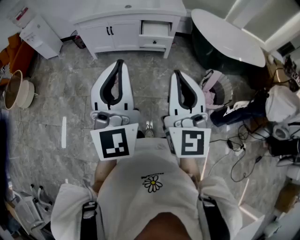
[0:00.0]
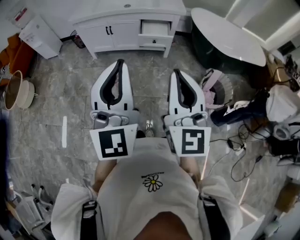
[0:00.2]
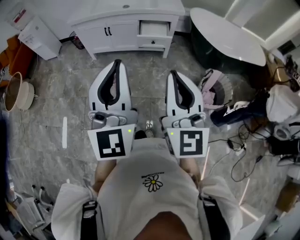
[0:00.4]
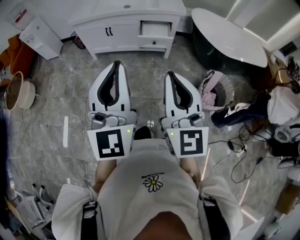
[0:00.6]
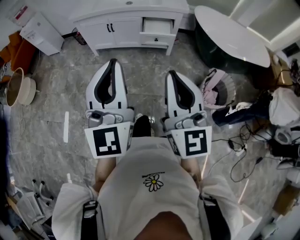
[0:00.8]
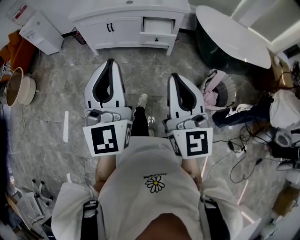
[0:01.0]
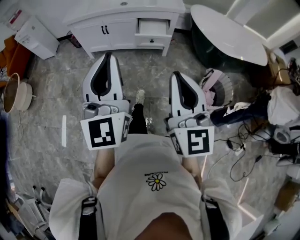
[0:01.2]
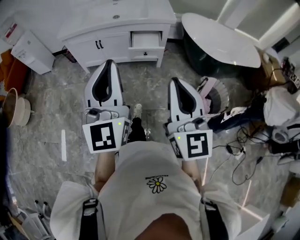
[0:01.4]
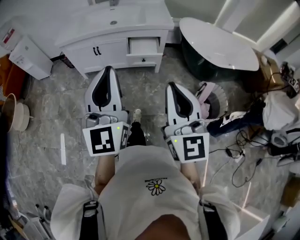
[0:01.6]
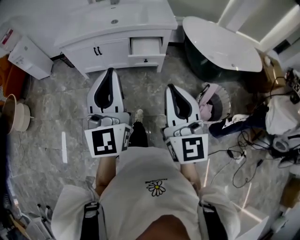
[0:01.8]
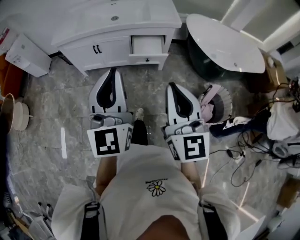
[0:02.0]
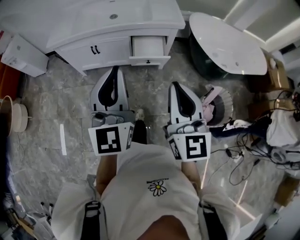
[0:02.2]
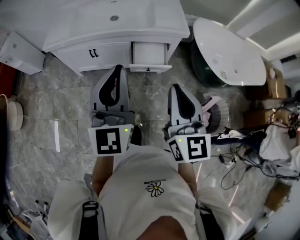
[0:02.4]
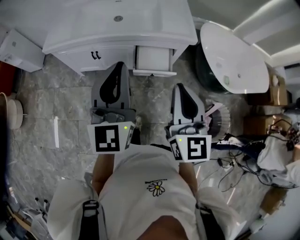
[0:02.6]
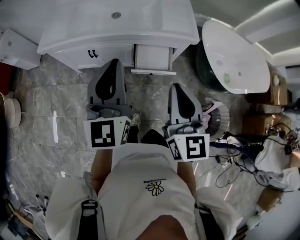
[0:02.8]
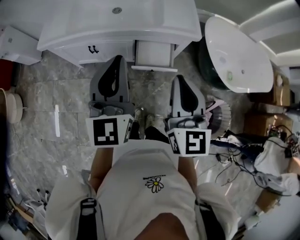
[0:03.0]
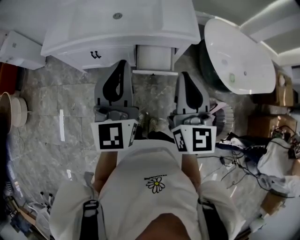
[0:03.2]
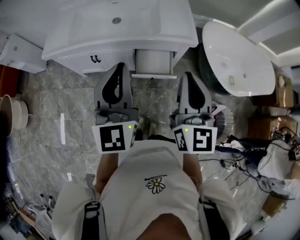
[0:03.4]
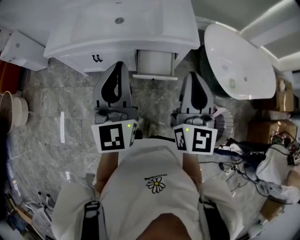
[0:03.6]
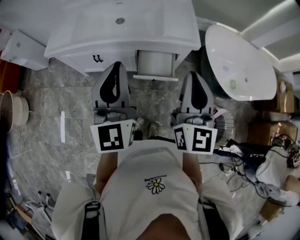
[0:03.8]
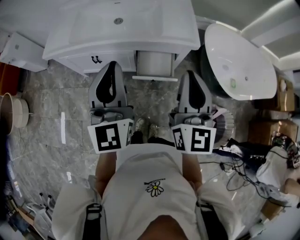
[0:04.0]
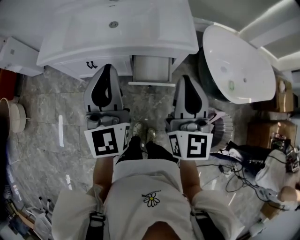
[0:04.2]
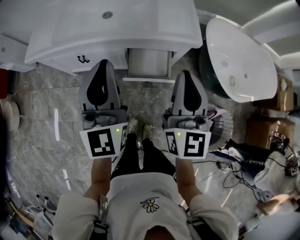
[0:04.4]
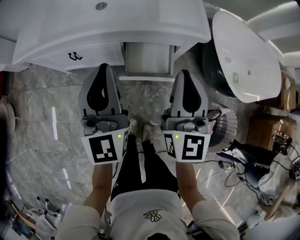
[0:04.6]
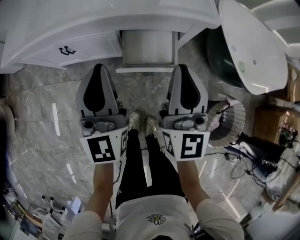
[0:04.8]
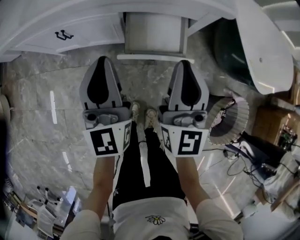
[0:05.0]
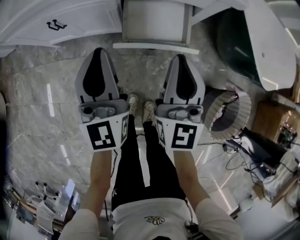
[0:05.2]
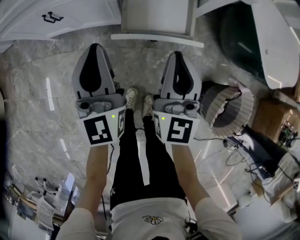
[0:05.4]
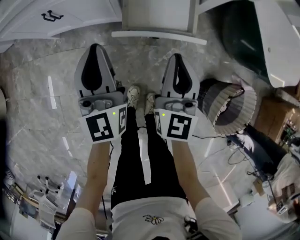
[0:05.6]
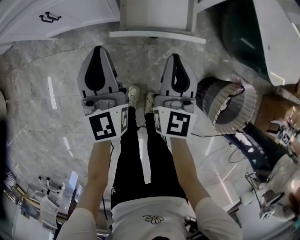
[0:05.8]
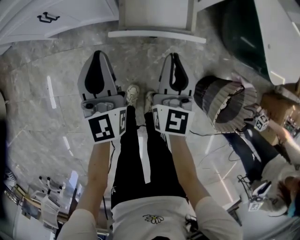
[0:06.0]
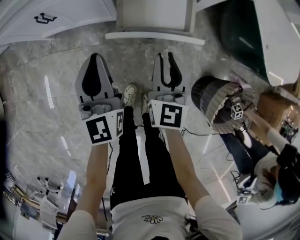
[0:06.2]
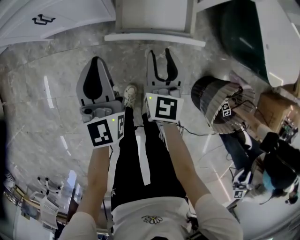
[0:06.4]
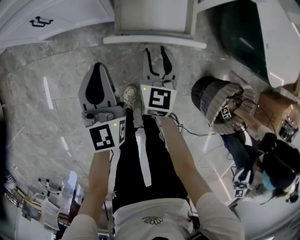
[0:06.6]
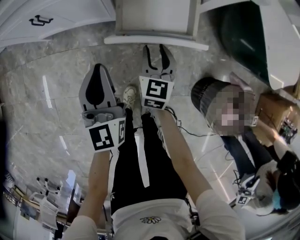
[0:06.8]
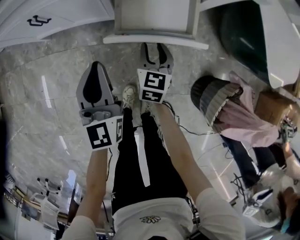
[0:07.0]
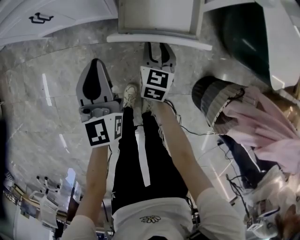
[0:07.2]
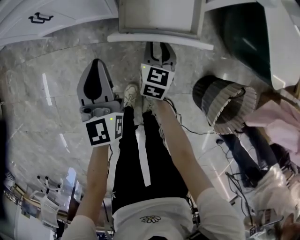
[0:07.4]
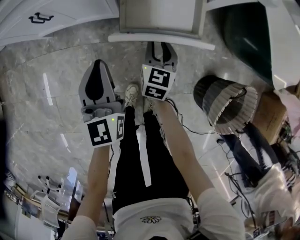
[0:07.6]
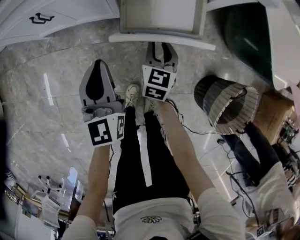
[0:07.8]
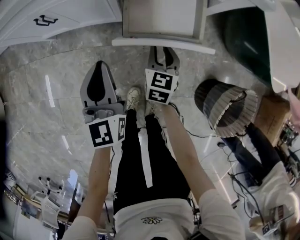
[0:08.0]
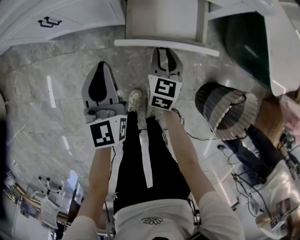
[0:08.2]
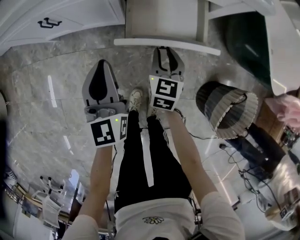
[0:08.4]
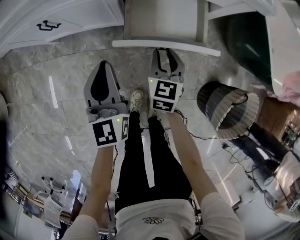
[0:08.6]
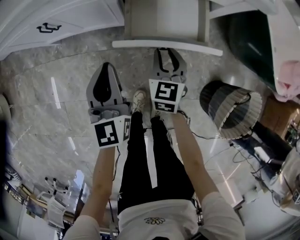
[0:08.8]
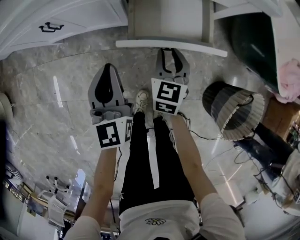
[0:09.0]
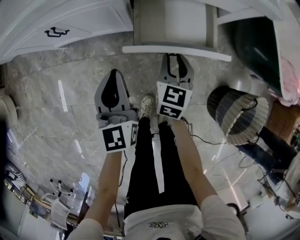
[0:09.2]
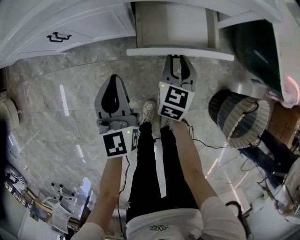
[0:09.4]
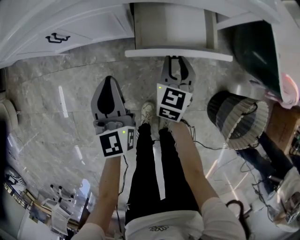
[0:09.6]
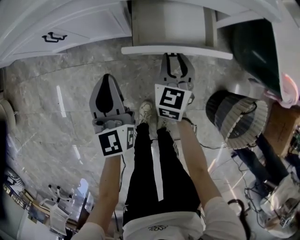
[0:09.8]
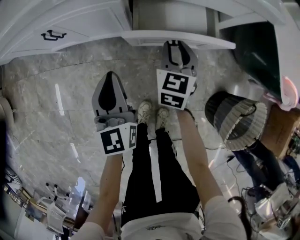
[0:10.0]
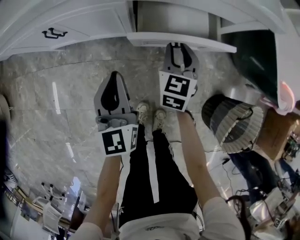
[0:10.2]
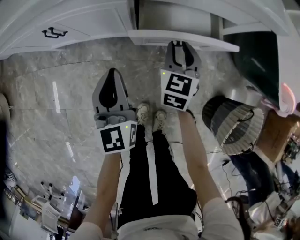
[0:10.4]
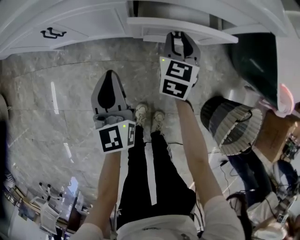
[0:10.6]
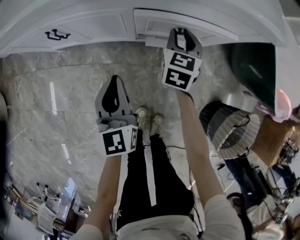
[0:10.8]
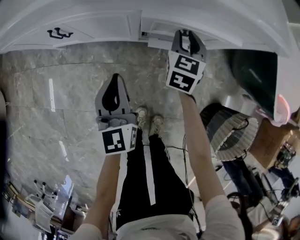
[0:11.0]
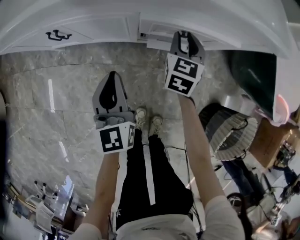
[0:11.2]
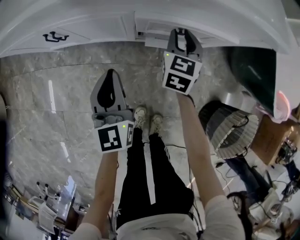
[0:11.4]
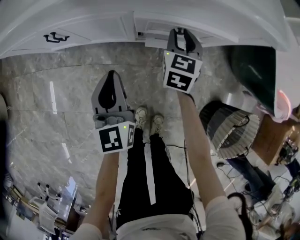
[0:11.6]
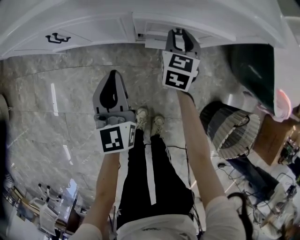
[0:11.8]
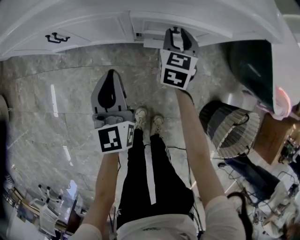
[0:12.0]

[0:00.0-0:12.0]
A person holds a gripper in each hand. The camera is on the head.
0:00.0 to 0:01.6: The grippers both shift forward by approximately 10 cm.
0:01.6 to 0:03.0: The two grippers go roughly 35 cm forward.
0:03.0 to 0:04.4: The two grippers go approximately 10 cm forward.
0:04.4 to 0:06.0: Both grippers travel together downward, some 35 cm.
0:06.0 to 0:07.6: The right gripper moves downward, some 15 cm, swivels some 20 degrees, and opens its fingers, while the left gripper shifts approximately 5 cm downward.
0:07.6 to 0:09.0: The grippers stay close to where they were, moving slightly.
0:09.0 to 0:10.4: The right gripper shifts about 5 cm forward.
0:10.4 to 0:12.0: The right gripper goes some 5 cm forward.

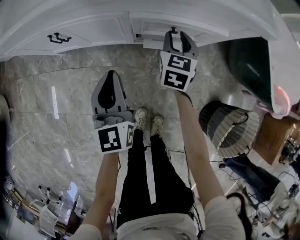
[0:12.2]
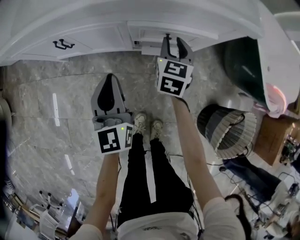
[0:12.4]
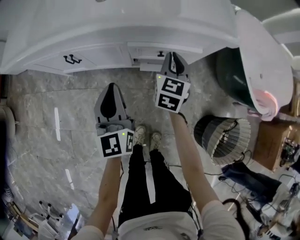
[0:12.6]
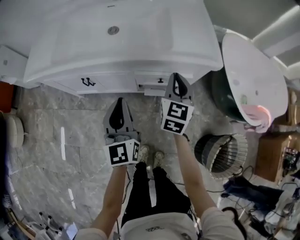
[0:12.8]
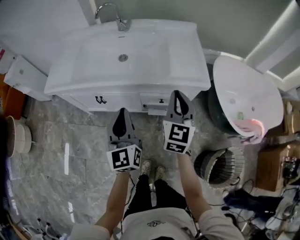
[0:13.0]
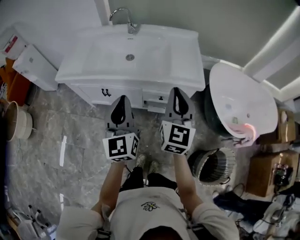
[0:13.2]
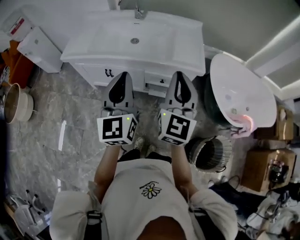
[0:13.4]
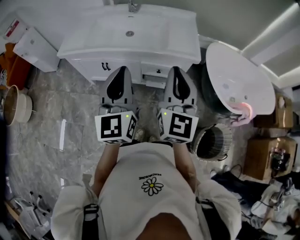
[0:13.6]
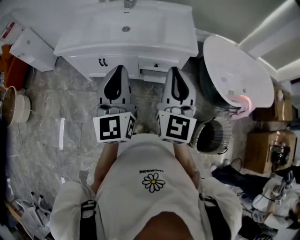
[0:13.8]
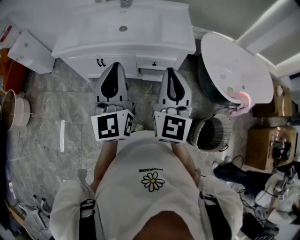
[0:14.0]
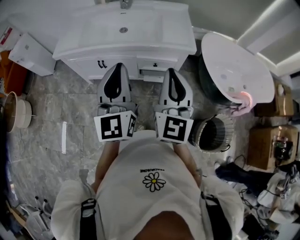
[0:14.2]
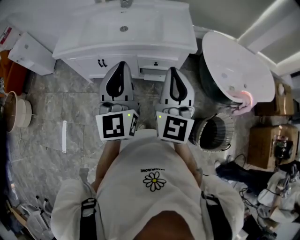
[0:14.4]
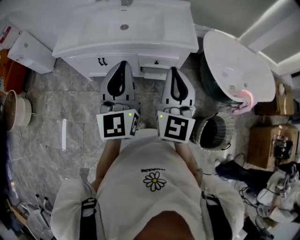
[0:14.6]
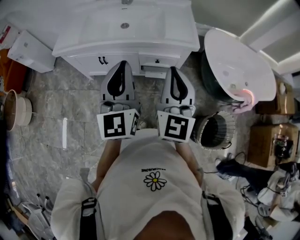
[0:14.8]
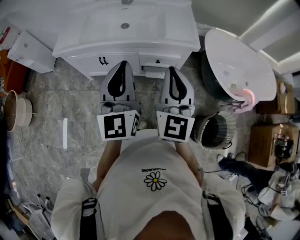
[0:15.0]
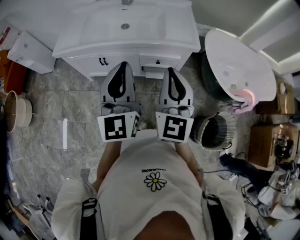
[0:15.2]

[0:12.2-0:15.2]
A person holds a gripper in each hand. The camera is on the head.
0:12.2 to 0:13.8: The right gripper shifts some 60 cm upward and backward, points its fingers approximately 40 degrees further upward, and closes its fingers; the left gripper moves upward, about 50 cm.
0:13.8 to 0:15.2: The grippers stay close to where they were, moving slightly.

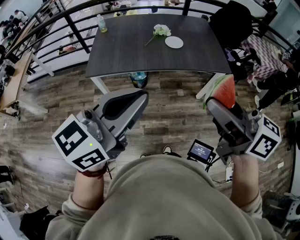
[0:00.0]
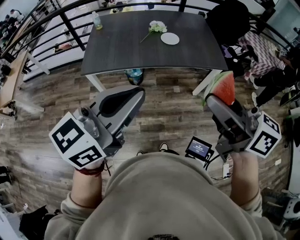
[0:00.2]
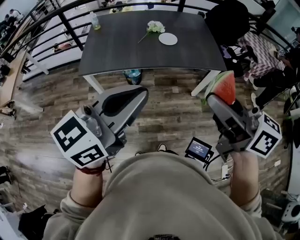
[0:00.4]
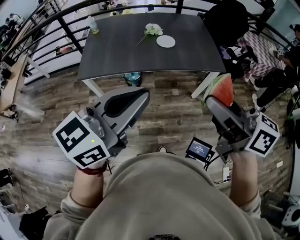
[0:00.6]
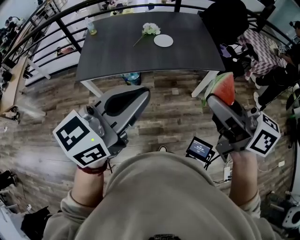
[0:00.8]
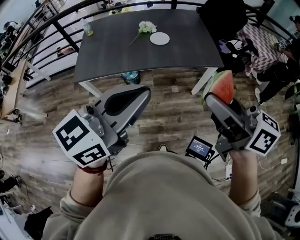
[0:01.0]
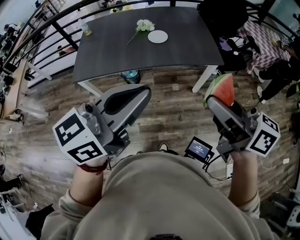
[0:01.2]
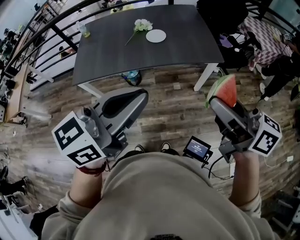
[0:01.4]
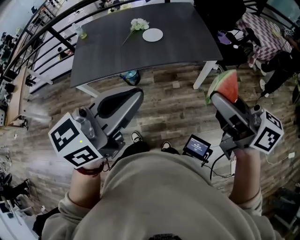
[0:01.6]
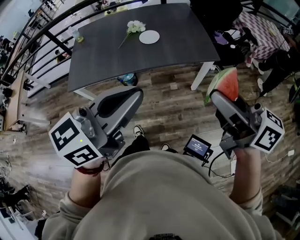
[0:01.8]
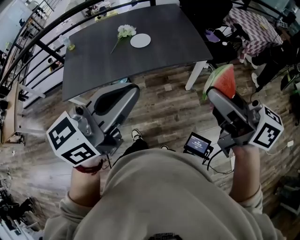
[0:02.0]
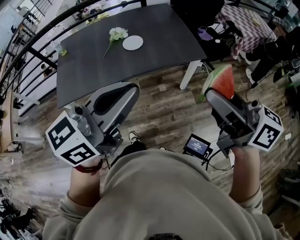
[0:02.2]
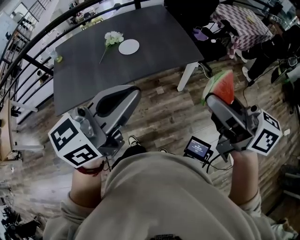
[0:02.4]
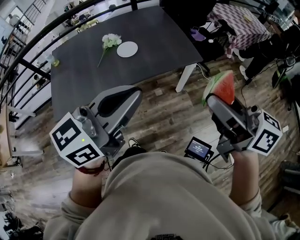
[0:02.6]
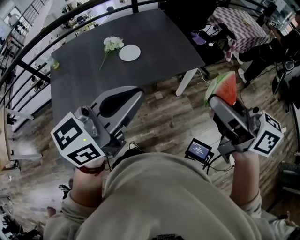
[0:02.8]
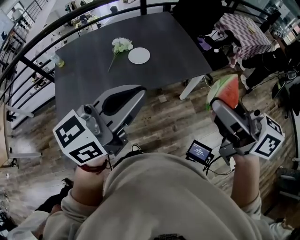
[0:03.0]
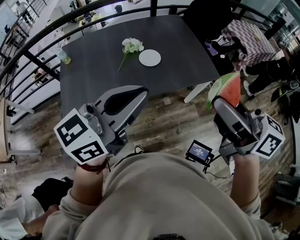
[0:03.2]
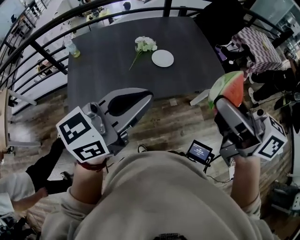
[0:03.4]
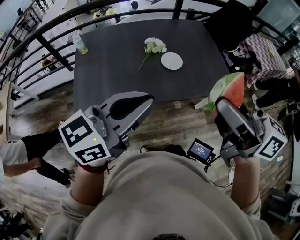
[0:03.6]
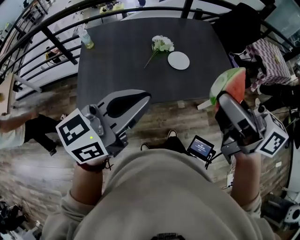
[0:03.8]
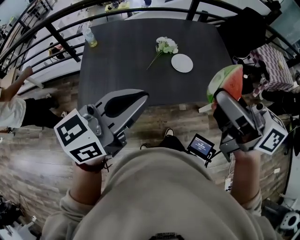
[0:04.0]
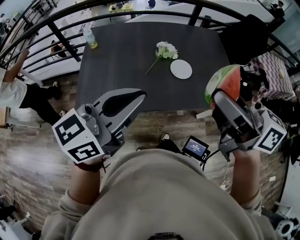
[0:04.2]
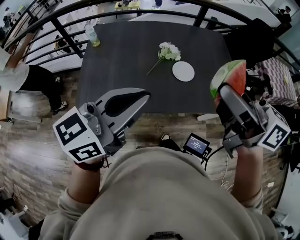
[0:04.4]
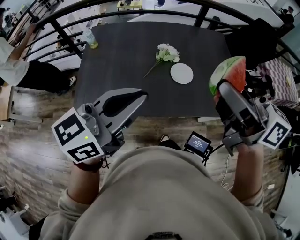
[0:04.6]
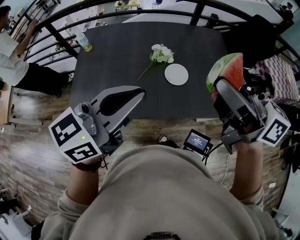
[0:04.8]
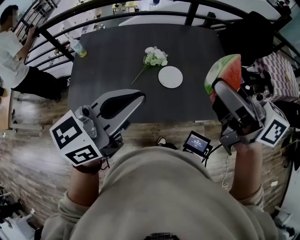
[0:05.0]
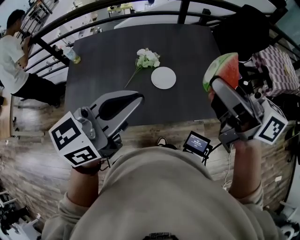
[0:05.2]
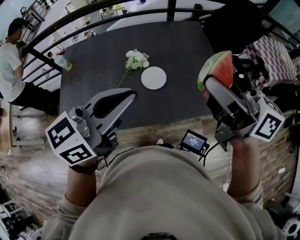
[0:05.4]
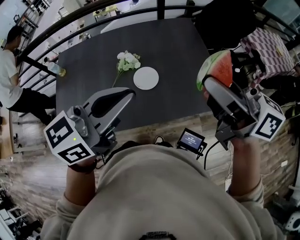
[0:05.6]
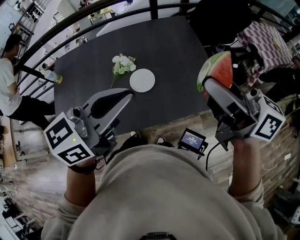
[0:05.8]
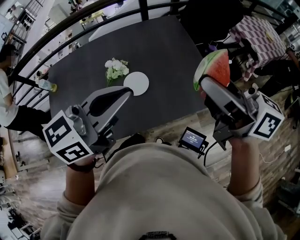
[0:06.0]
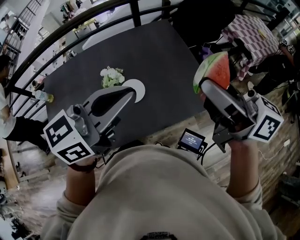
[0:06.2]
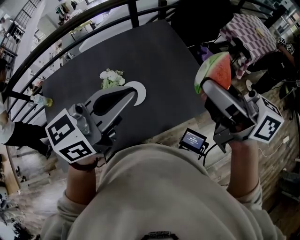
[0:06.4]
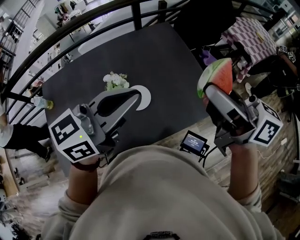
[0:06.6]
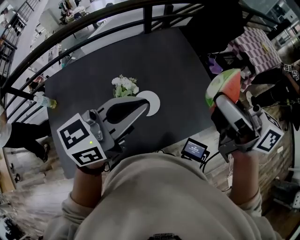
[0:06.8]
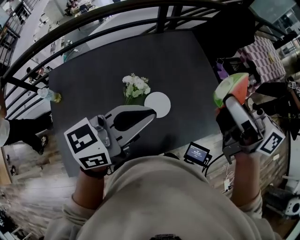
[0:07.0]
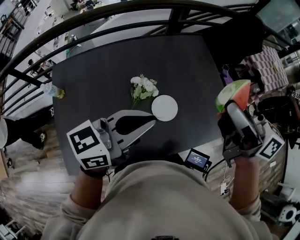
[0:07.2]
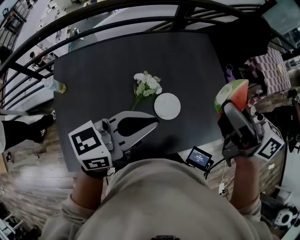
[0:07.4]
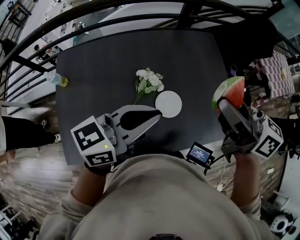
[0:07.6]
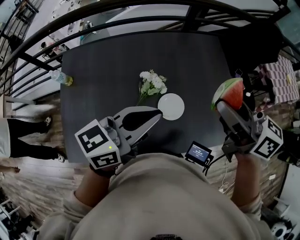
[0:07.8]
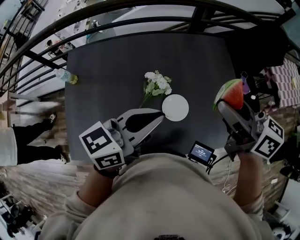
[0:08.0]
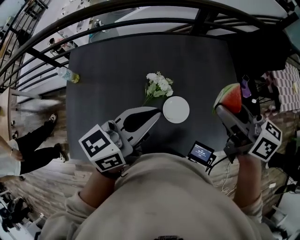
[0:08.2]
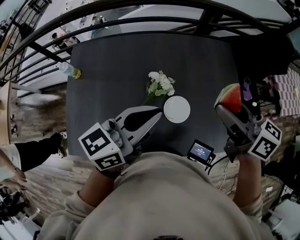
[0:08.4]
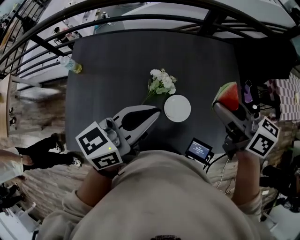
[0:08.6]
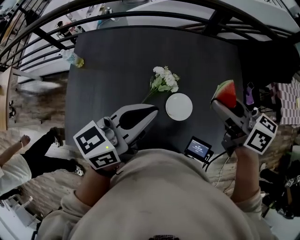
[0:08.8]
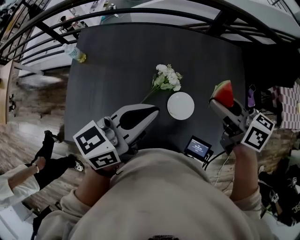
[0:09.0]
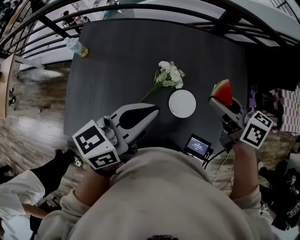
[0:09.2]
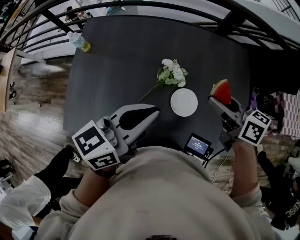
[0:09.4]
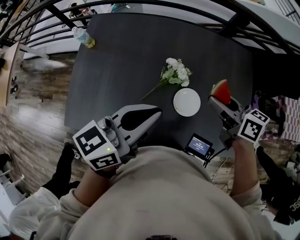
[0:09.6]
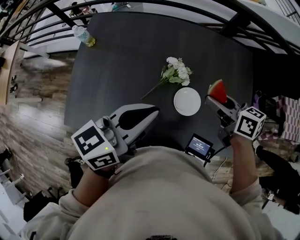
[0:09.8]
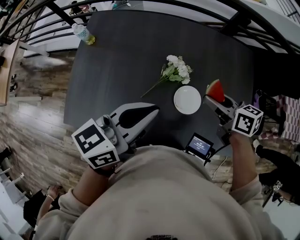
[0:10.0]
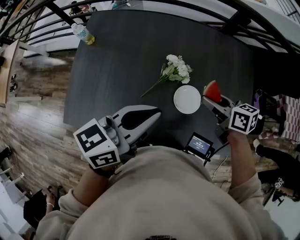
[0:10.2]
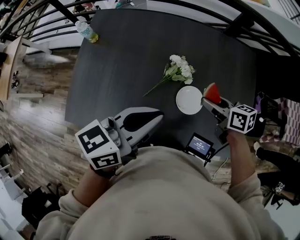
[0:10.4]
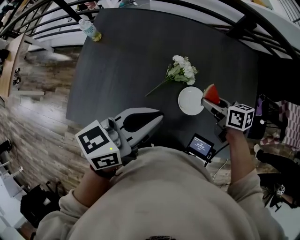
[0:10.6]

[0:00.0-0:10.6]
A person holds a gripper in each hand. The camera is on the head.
0:00.0 to 0:01.6: The left gripper heads to the right and forward, covering approximately 15 cm. The right gripper goes some 20 cm to the right, forward and downward.
0:01.6 to 0:03.0: The two grippers go roughly 15 cm forward and to the left.
0:03.0 to 0:04.6: The right gripper shifts some 25 cm forward and to the left, and swivels about 20 degrees. The left gripper shifts some 20 cm to the left and forward.
0:04.6 to 0:06.0: The right gripper shifts some 10 cm backward. The left gripper shifts about 10 cm backward.
0:06.0 to 0:07.6: Both grippers move to the left and forward, some 20 cm.
0:07.6 to 0:09.0: The left gripper turns by approximately 20 degrees, while the right gripper is displaced downward by roughly 10 cm, and changes its angle by about 20 degrees.
0:09.0 to 0:10.6: The left gripper shifts by about 5 cm; the right gripper is displaced downward by about 20 cm, and changes its angle by some 20 degrees.
